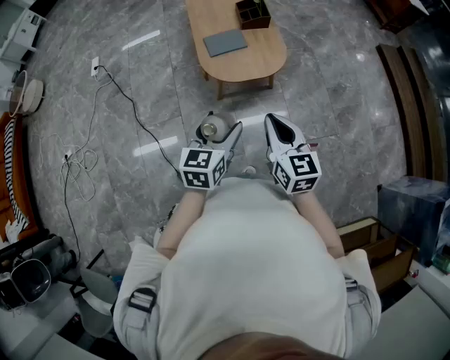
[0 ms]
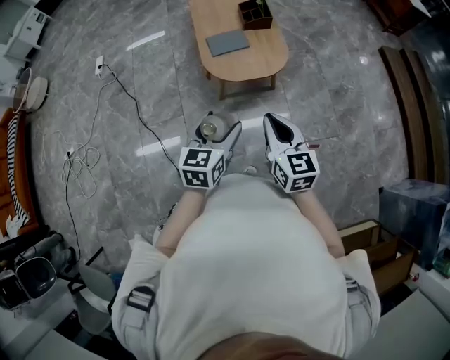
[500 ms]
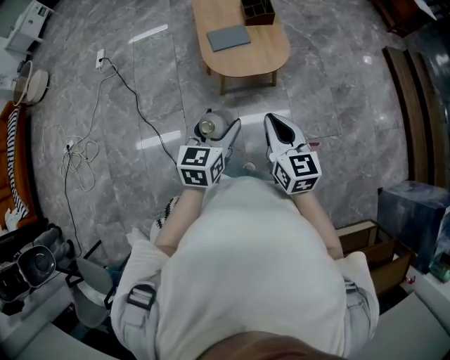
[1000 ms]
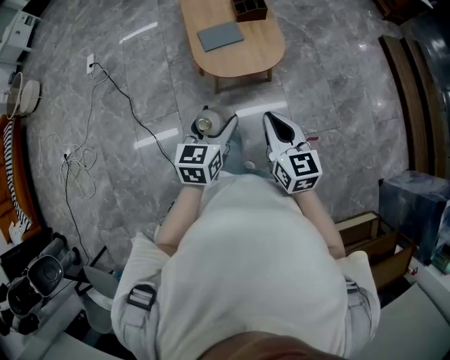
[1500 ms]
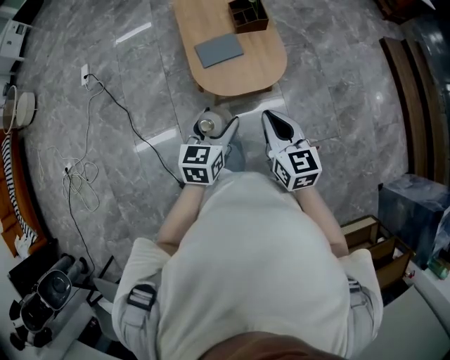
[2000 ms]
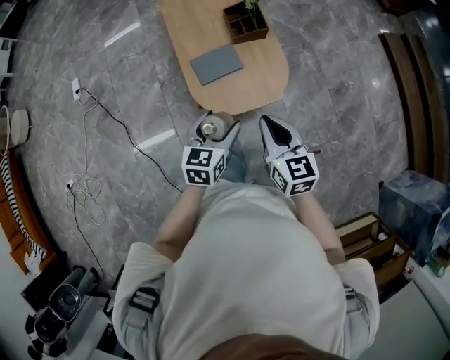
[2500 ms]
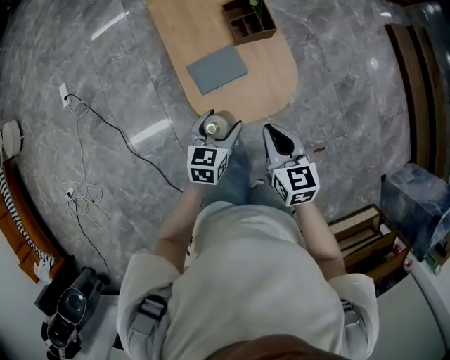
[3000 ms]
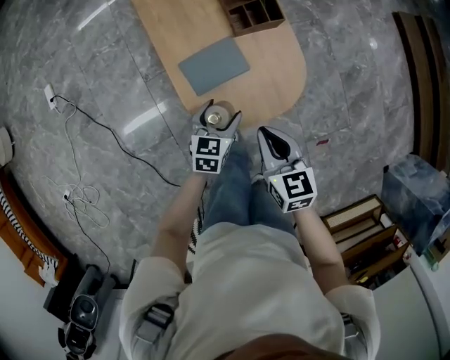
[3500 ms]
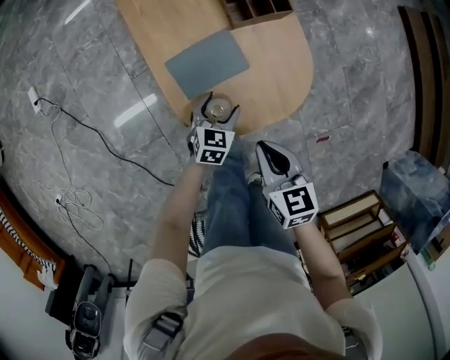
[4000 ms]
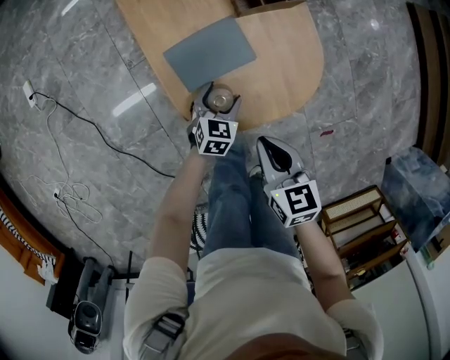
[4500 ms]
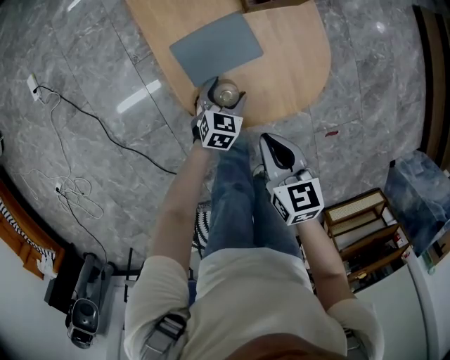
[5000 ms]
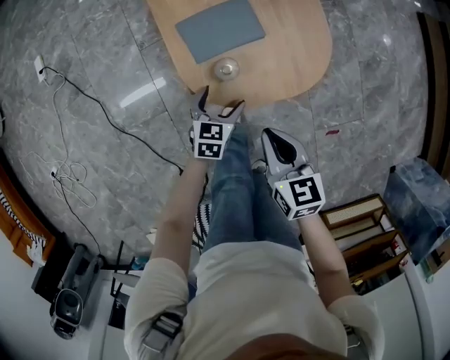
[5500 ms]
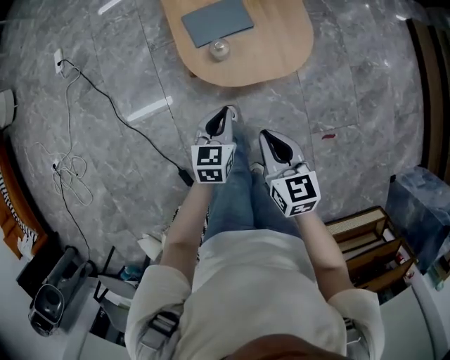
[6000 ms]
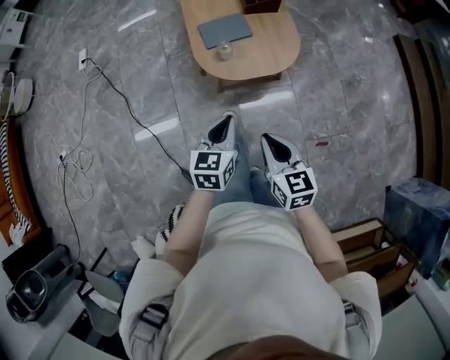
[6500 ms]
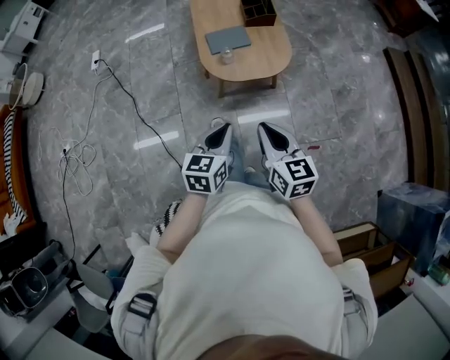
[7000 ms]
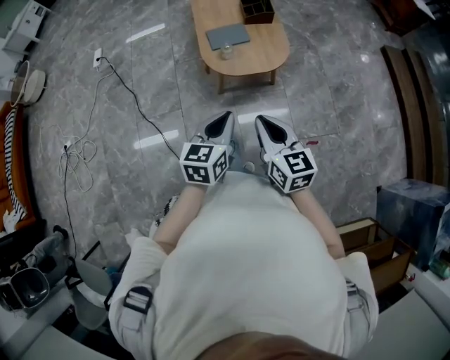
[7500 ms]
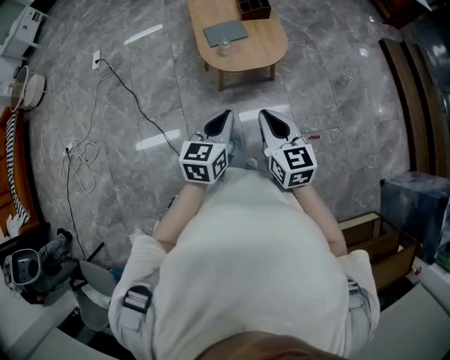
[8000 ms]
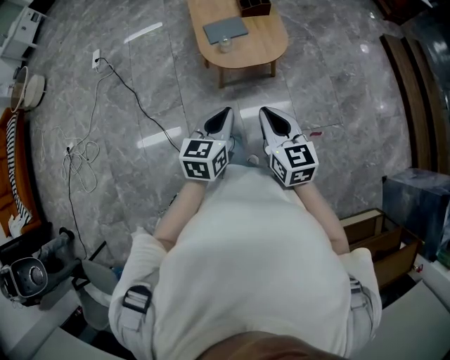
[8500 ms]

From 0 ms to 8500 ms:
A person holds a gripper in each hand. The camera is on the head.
From 0 ms to 2000 ms: Both grippers move forward, roughly 15 cm.
From 2000 ms to 4000 ms: The grippers both shift downward and forward by some 40 cm. The left gripper turns by approximately 20 degrees, while the right gripper changes its angle by about 30 degrees.
From 4000 ms to 6500 ms: The left gripper shifts some 40 cm backward and upward, changes its angle by approximately 30 degrees, and closes up; the right gripper goes roughly 30 cm backward.
From 6500 ms to 8500 ms: The right gripper moves upward and backward, about 15 cm; the left gripper heads backward and upward, covering roughly 20 cm.

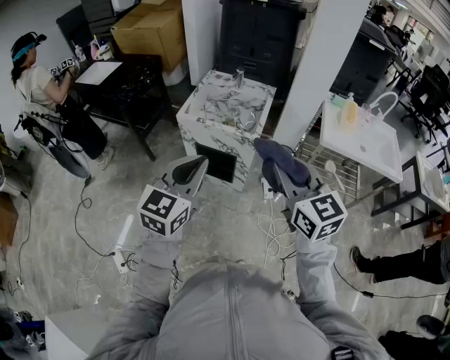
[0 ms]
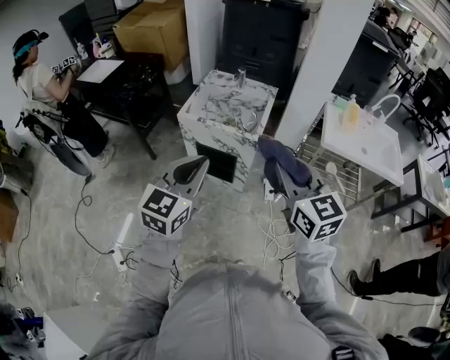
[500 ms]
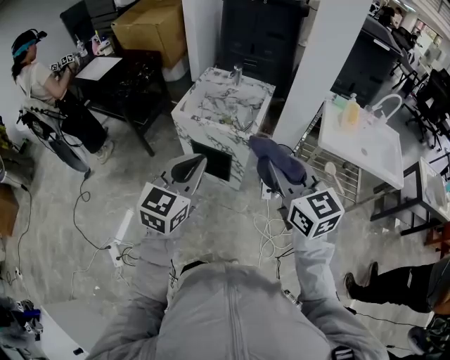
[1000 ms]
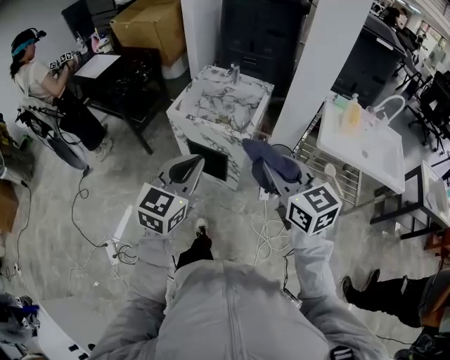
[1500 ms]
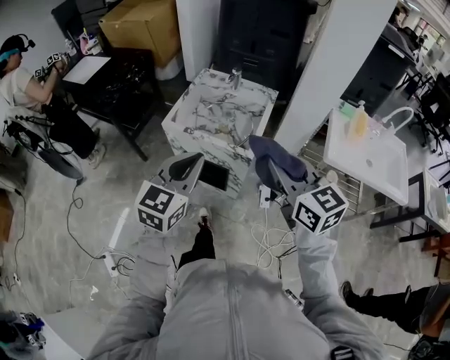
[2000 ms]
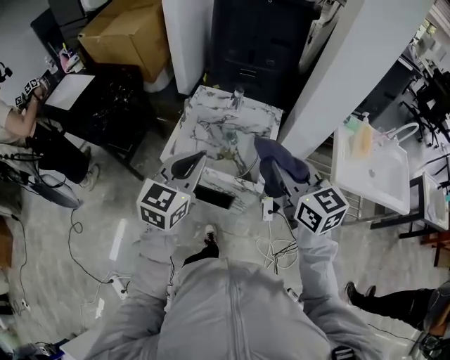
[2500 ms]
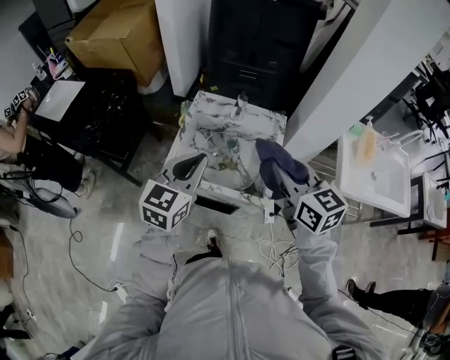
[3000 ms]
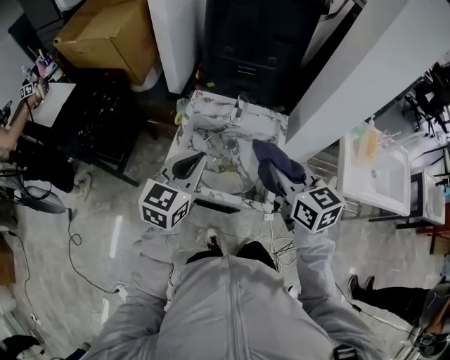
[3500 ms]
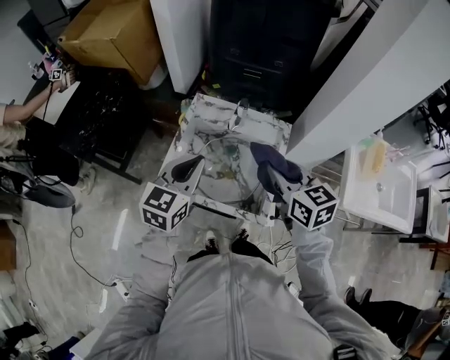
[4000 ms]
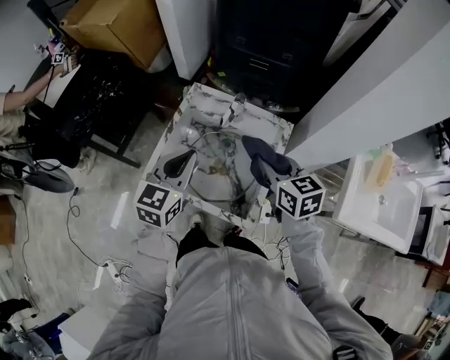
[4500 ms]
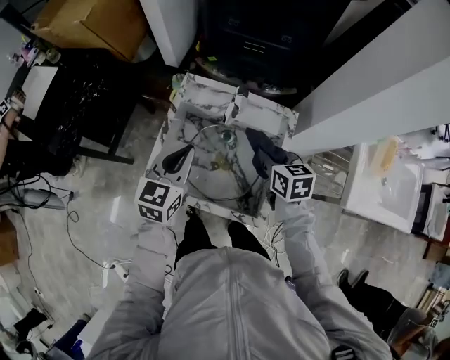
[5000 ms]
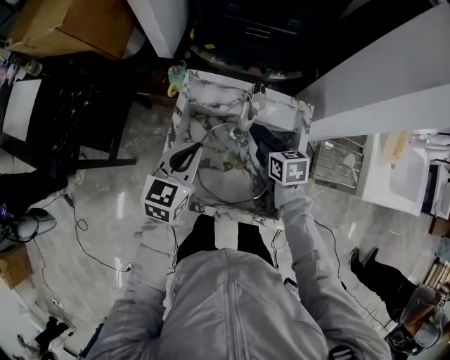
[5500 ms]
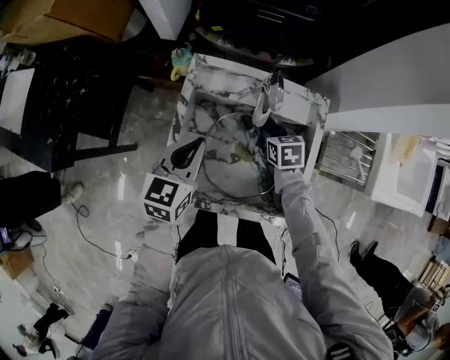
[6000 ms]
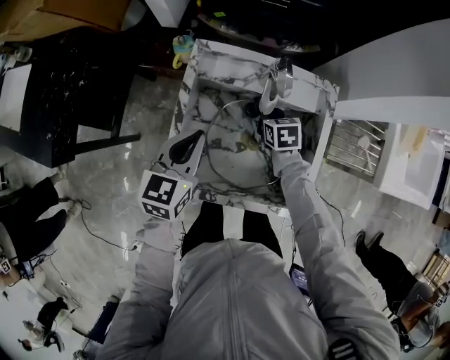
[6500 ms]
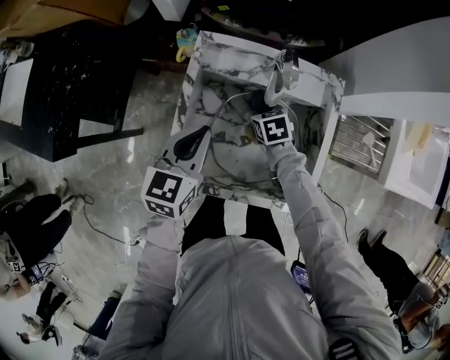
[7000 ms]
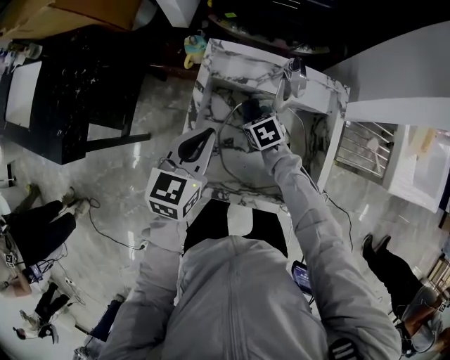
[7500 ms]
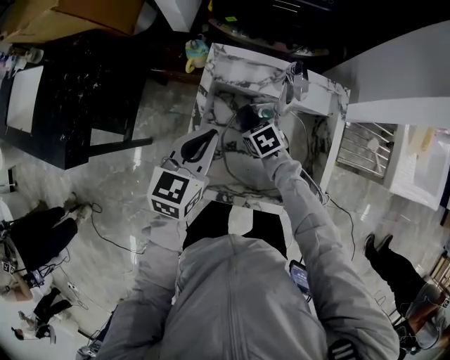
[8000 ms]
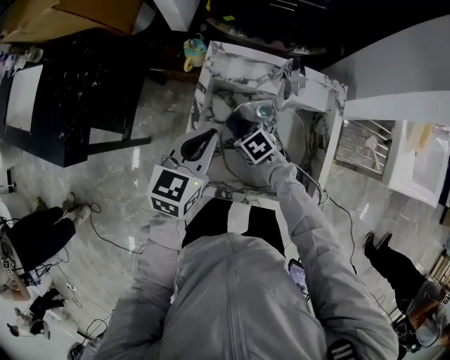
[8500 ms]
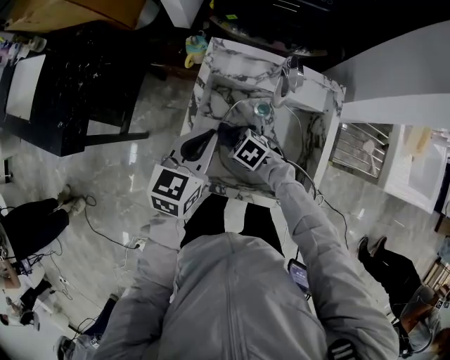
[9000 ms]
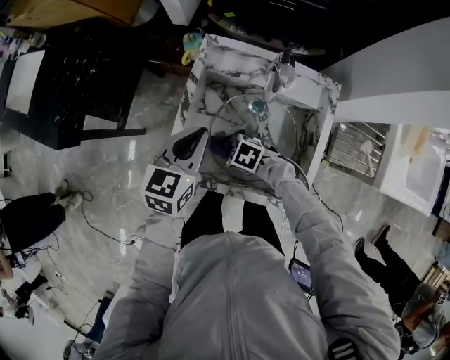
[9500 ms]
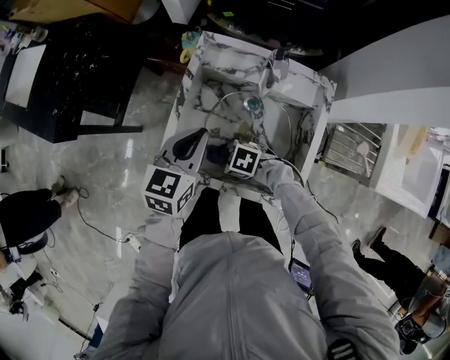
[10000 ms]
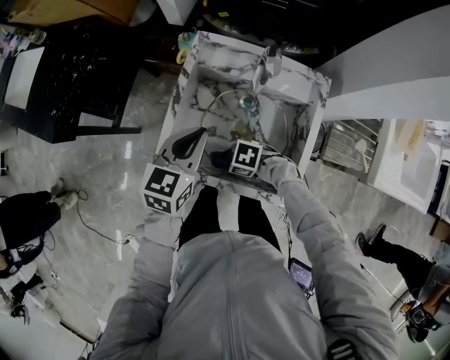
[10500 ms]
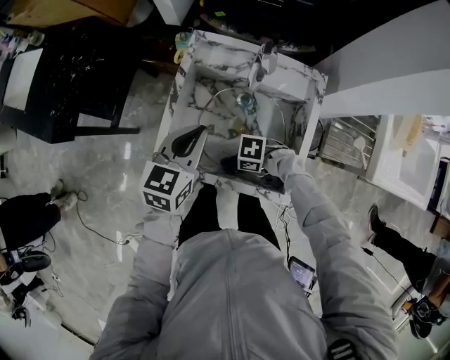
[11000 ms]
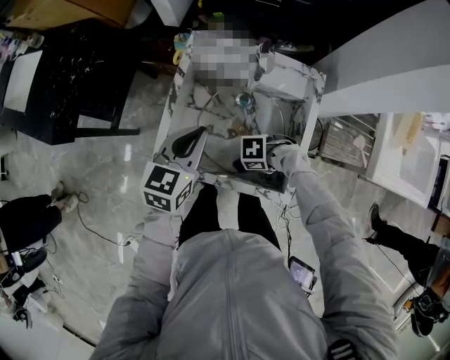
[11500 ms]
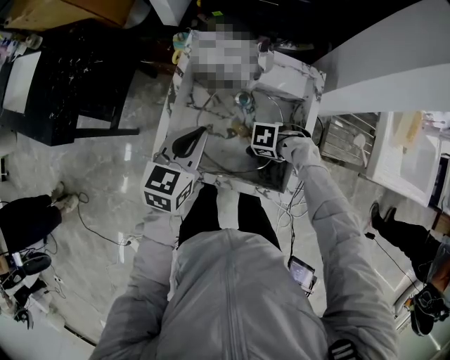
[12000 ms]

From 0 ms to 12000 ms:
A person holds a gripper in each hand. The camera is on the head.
From 0 ms to 2000 ms: Both grippers travel together forward, approximately 15 cm.
From 2000 ms to 4000 ms: Both grippers move forward, approximately 30 cm.
From 4000 ms to 6000 ms: The left gripper is displaced downward and forward by some 20 cm; the right gripper travels downward and forward by about 35 cm, and points its fingers approximately 30 degrees further downward.
From 6000 ms to 8000 ms: The right gripper travels to the left by approximately 15 cm, and rotates roughly 20 degrees.
From 8000 ms to 10000 ms: The left gripper changes place by some 5 cm. The right gripper changes place by roughly 20 cm, and swivels some 50 degrees.
From 10000 ms to 12000 ms: The right gripper changes place by approximately 20 cm, and swivels some 30 degrees.

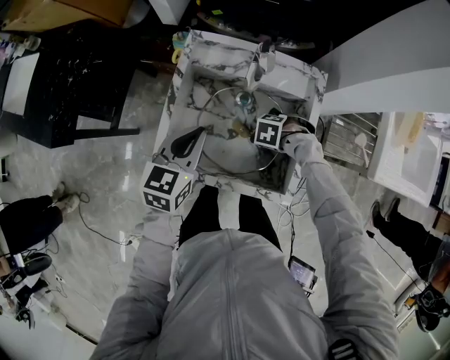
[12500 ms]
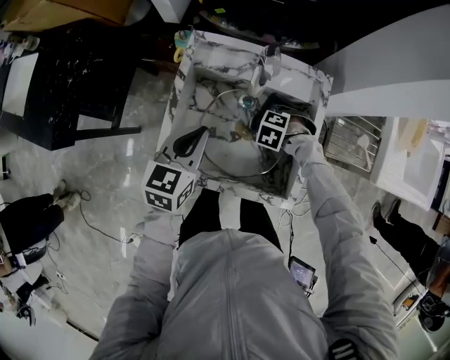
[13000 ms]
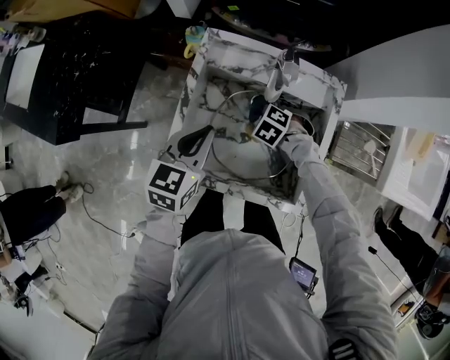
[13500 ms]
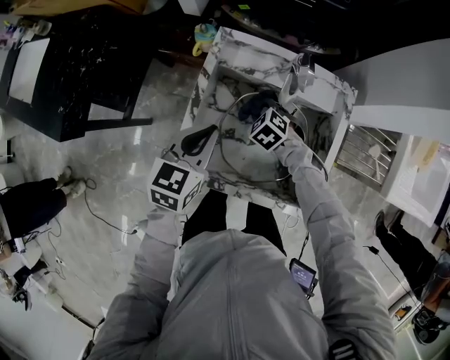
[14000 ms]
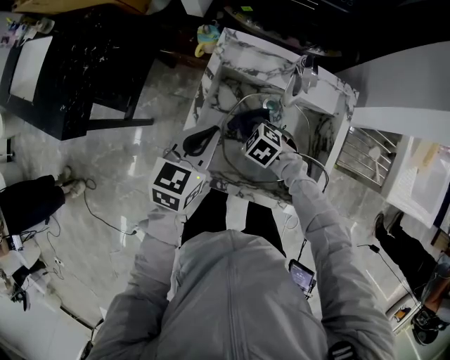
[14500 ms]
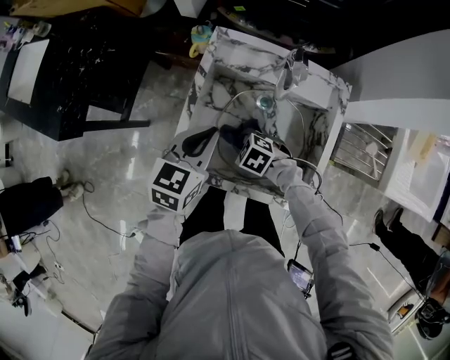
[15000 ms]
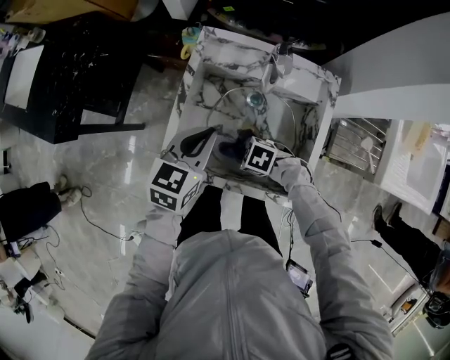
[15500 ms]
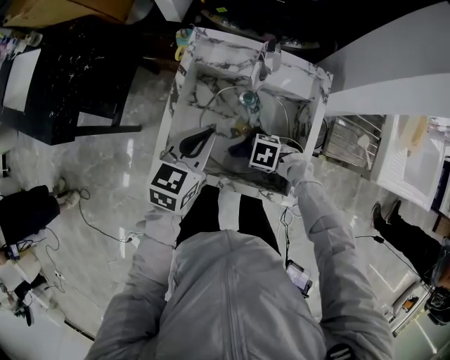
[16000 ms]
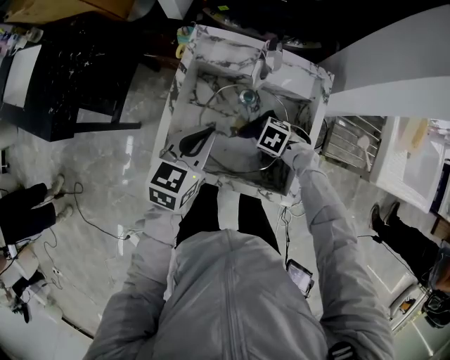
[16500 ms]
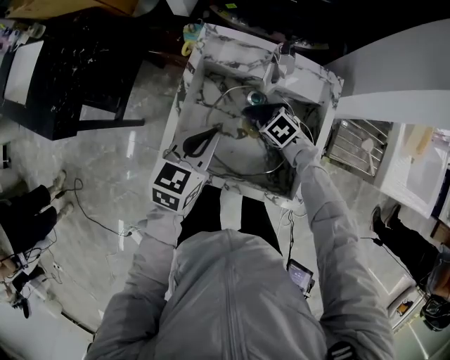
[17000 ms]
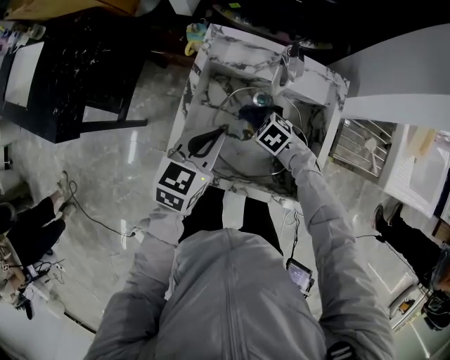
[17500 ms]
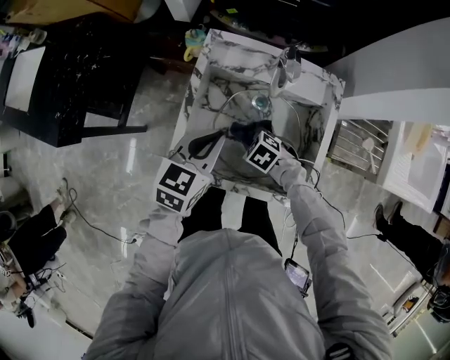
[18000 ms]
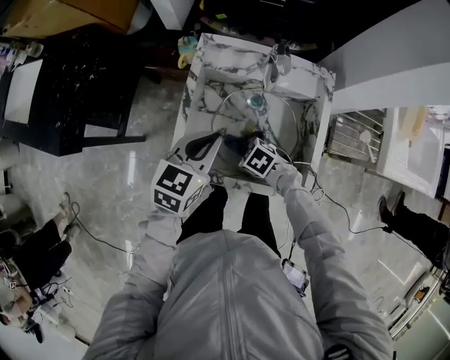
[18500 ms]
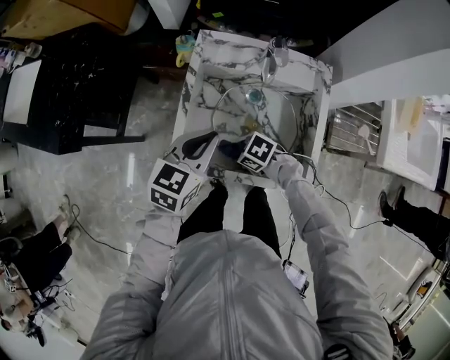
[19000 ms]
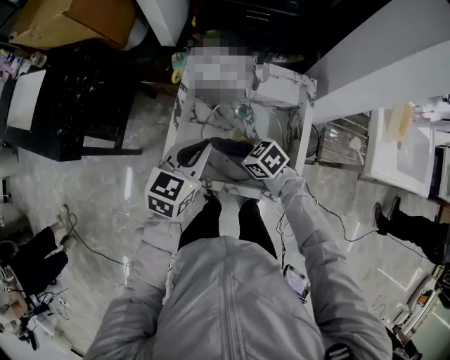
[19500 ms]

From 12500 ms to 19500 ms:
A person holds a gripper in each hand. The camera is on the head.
From 12500 ms to 14500 ms: The right gripper moves about 20 cm, and changes its angle by roughly 40 degrees.
From 14500 ms to 16000 ms: The right gripper ends up approximately 15 cm from where it was, and turns by about 30 degrees. Meanwhile the left gripper moves some 5 cm.
From 16000 ms to 17500 ms: The right gripper shifts by some 10 cm, and rotates approximately 30 degrees.
From 17500 ms to 19500 ms: The right gripper is displaced upward by about 10 cm, and swivels about 30 degrees.
